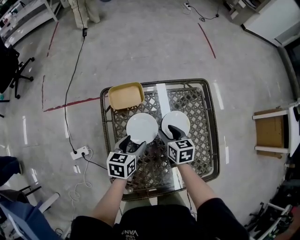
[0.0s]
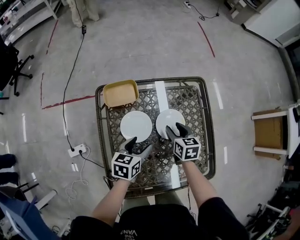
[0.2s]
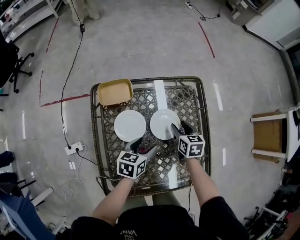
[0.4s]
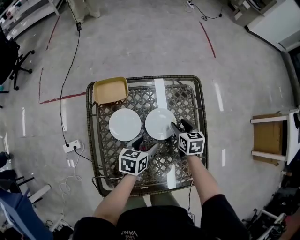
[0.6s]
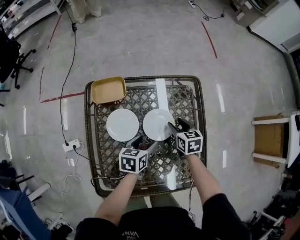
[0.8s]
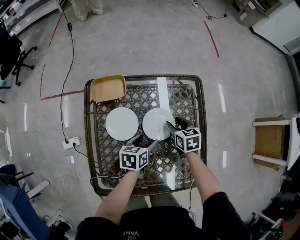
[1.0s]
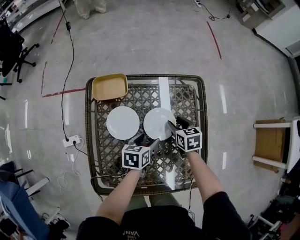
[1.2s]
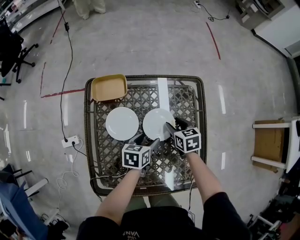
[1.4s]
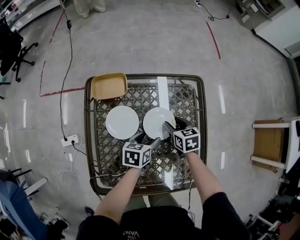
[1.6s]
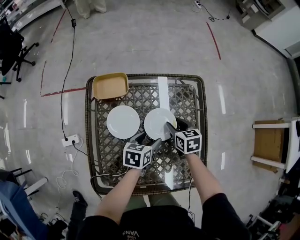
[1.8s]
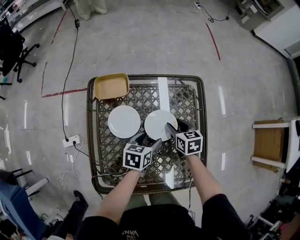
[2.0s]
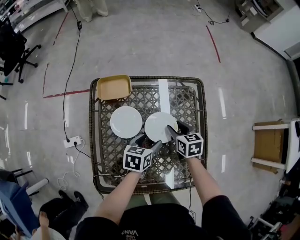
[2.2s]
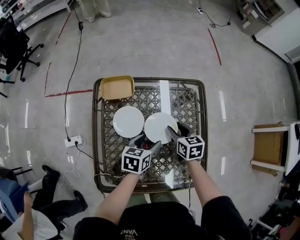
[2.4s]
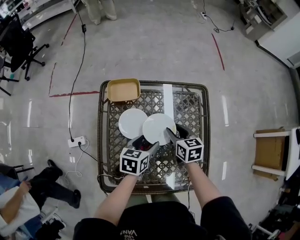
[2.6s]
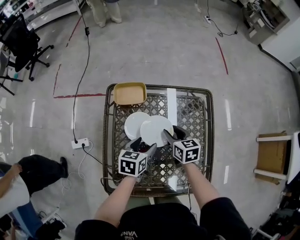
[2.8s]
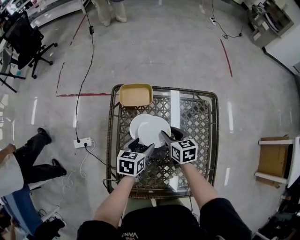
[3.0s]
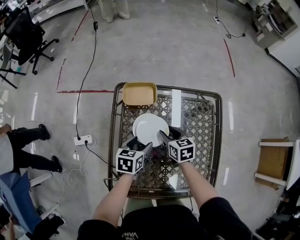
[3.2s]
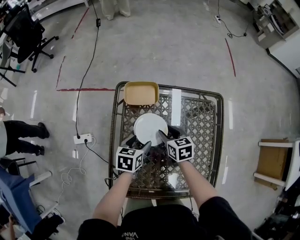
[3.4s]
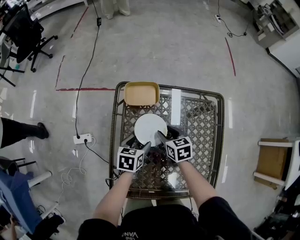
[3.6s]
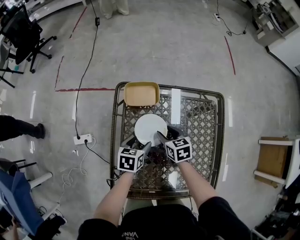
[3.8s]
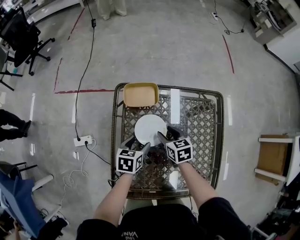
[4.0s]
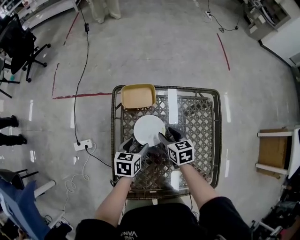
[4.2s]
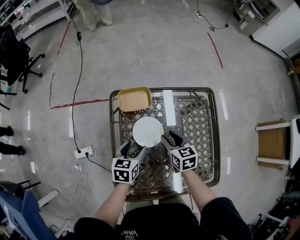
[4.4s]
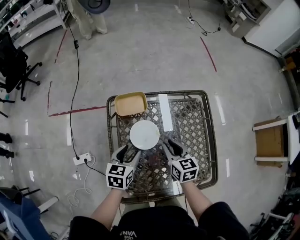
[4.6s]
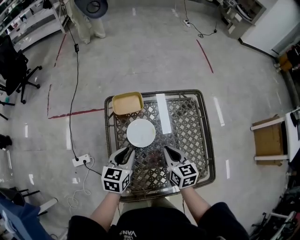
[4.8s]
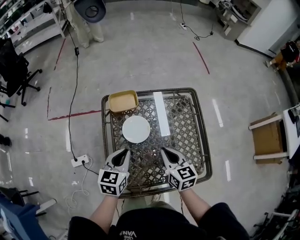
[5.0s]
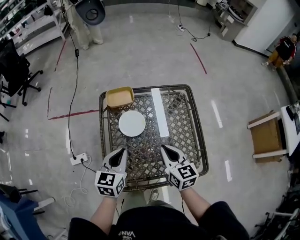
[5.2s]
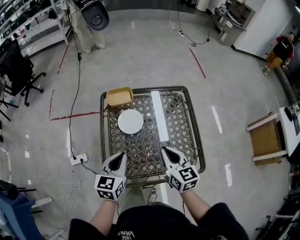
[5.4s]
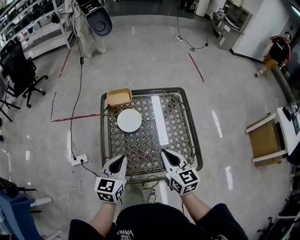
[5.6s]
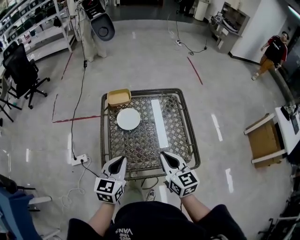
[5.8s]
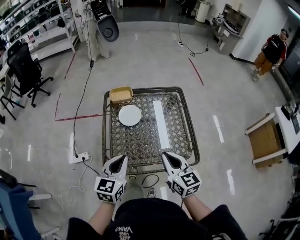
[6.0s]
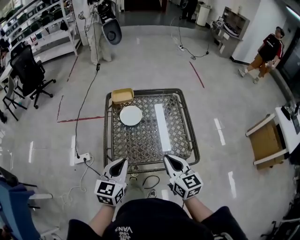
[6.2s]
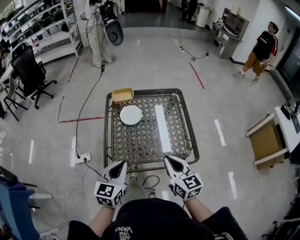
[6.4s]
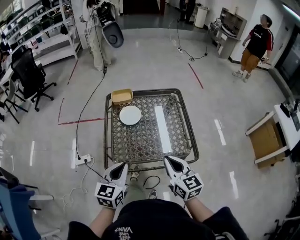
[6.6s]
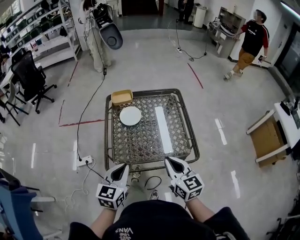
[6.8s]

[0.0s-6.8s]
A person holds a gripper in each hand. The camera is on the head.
0.0s to 1.4s: Both grippers travel together to the right, roughly 15 cm.
1.4s to 2.8s: Both grippers move to the left and upward, about 10 cm.
2.8s to 4.0s: Both grippers travel together to the left and downward, roughly 10 cm.
4.0s to 5.4s: The right gripper is displaced upward, backward and to the right by roughly 30 cm, rotates about 30 degrees, and closes its fingers, while the left gripper heads upward and backward, covering some 25 cm, turns by roughly 30 degrees, and closes its fingers.
5.4s to 6.8s: The grippers both shift backward by roughly 20 cm.

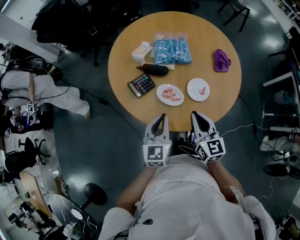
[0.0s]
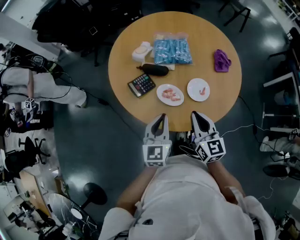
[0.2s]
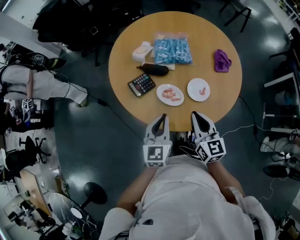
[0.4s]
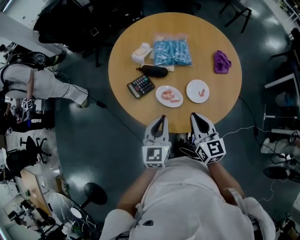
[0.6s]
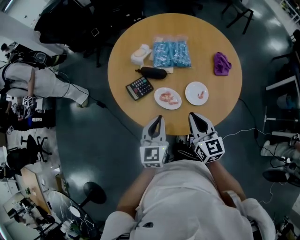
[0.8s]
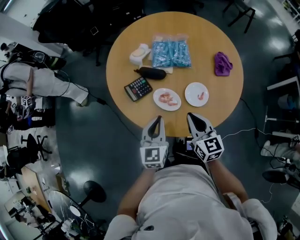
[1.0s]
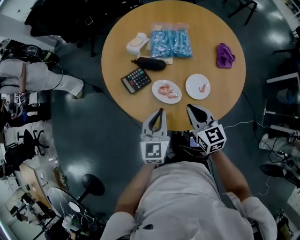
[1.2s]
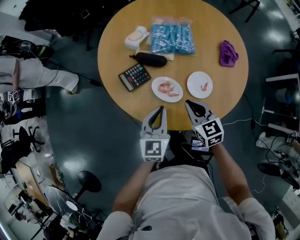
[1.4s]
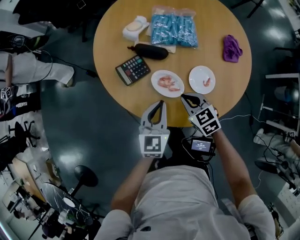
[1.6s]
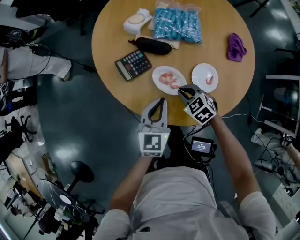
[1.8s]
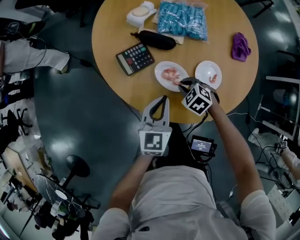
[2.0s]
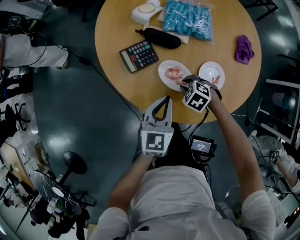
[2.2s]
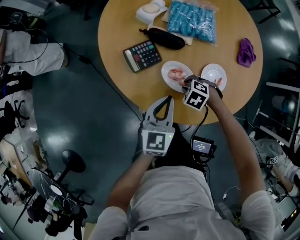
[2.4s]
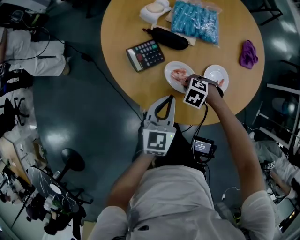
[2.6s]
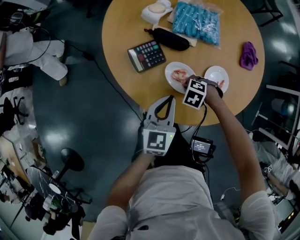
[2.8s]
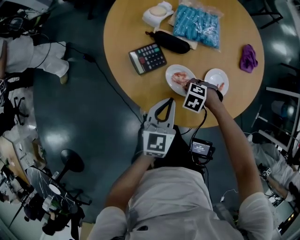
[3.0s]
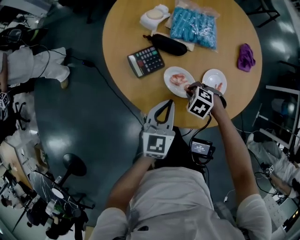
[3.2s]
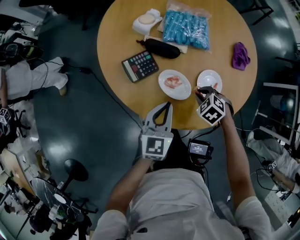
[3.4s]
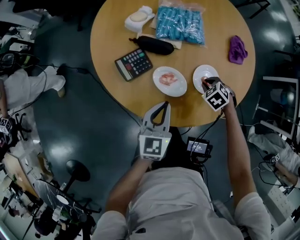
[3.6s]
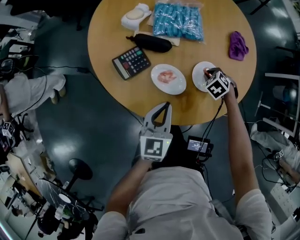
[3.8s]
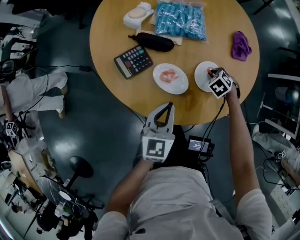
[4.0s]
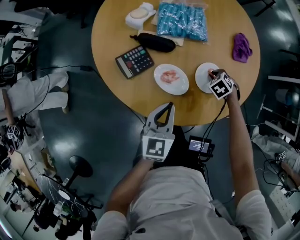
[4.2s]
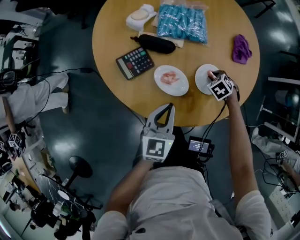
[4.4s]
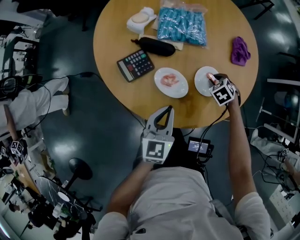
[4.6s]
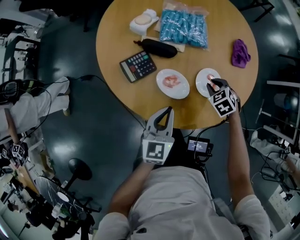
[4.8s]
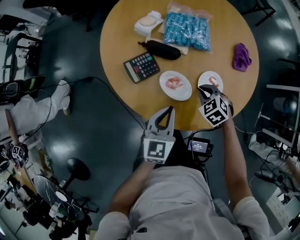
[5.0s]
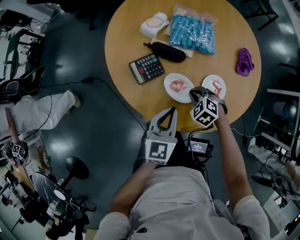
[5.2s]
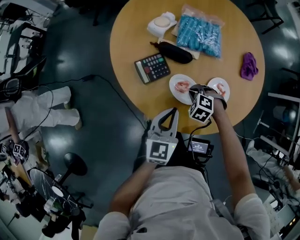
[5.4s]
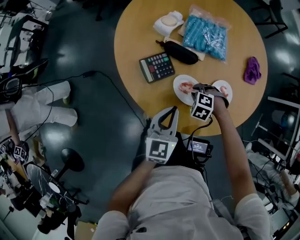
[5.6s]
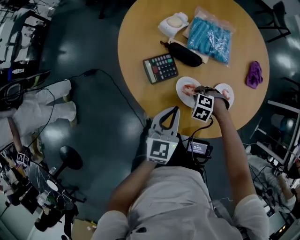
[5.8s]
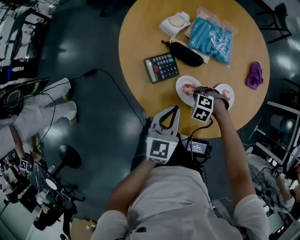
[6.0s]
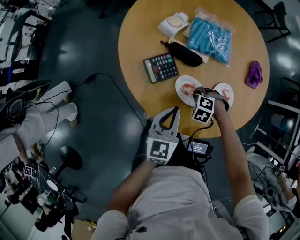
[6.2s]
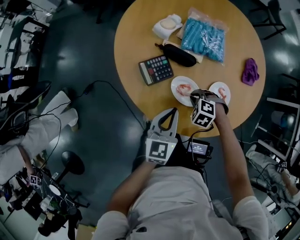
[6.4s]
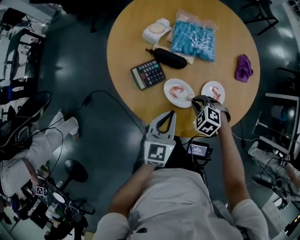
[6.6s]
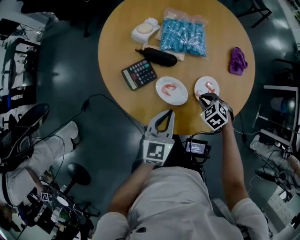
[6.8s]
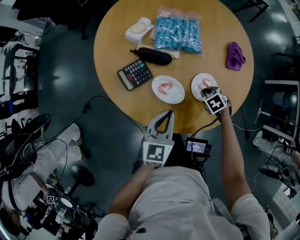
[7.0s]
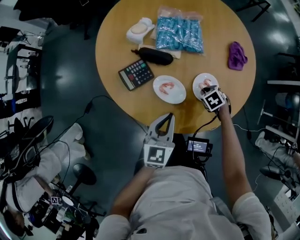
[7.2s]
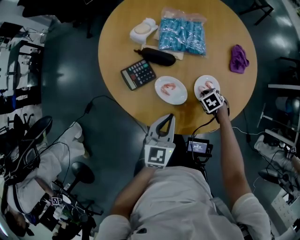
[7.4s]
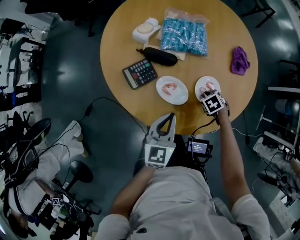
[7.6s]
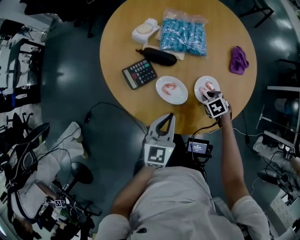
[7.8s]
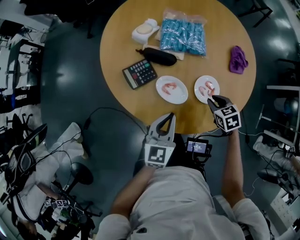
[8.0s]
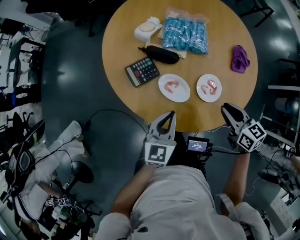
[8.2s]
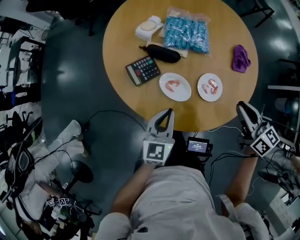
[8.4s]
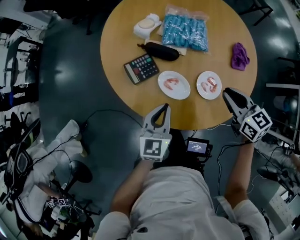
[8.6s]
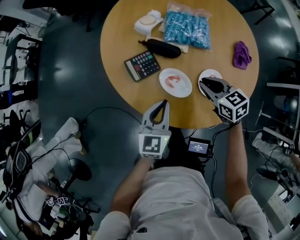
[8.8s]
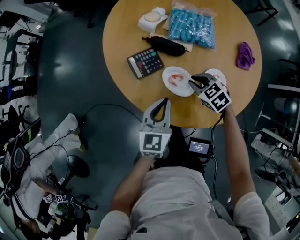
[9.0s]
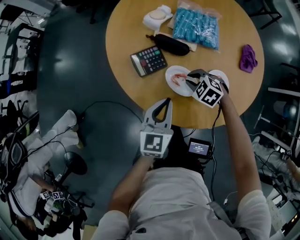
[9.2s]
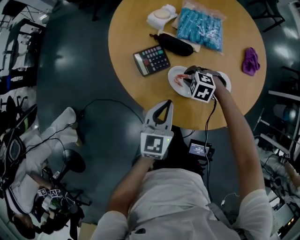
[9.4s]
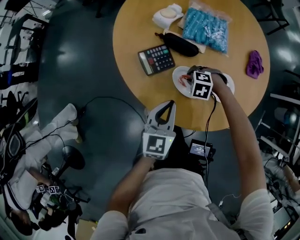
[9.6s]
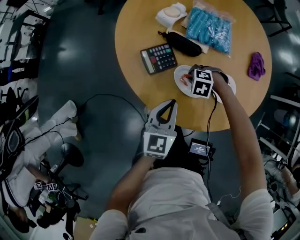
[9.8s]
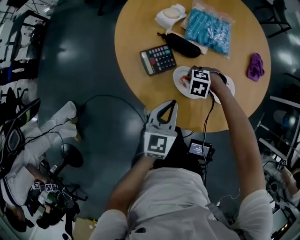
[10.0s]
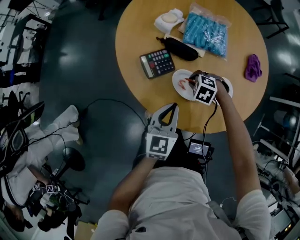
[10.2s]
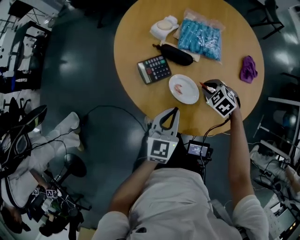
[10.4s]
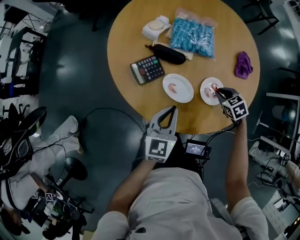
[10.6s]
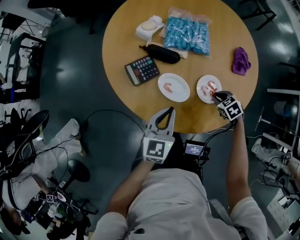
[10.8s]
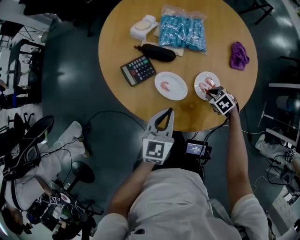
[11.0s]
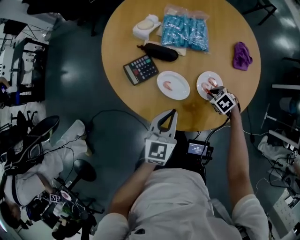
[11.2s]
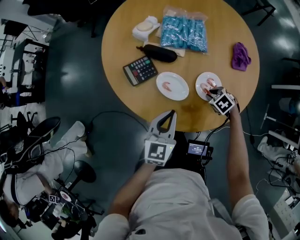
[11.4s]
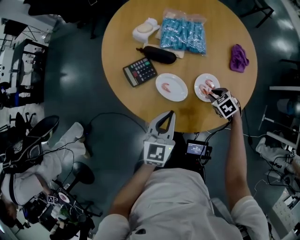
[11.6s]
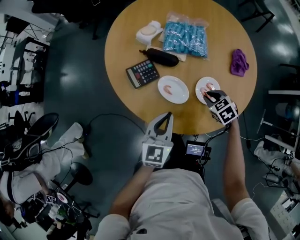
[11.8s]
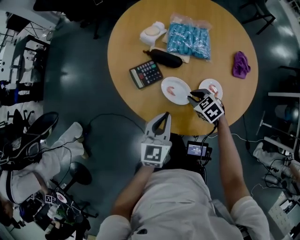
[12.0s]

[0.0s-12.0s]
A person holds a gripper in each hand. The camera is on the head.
0.0s to 1.6s: The left gripper is displaced downward and forward by roughly 10 cm; the right gripper moves downward and forward, approximately 20 cm, and swivels some 40 degrees.
1.6s to 3.0s: The right gripper is displaced downward by some 15 cm, and points its fingers roughly 40 degrees further downward.
3.0s to 4.4s: The right gripper ends up about 20 cm from where it was, and swivels some 40 degrees.
4.4s to 6.0s: The right gripper travels upward and back again, about 10 cm each way, and rotates around the line of its fingers by about 40 degrees, counterclockwise from behind. Meanwhile the left gripper ends up some 10 cm from where it was.
6.0s to 7.6s: The right gripper moves some 10 cm upward and comes back, and twists roughly 60 degrees clockwise, seen from behind; the left gripper ends up approximately 10 cm from where it was.
7.6s to 9.0s: The left gripper shifts by about 5 cm, while the right gripper moves some 30 cm upward and comes back, and rotates some 30 degrees.
9.0s to 10.4s: The right gripper travels downward and back again, some 10 cm each way.
10.4s to 12.0s: The right gripper travels downward and back again, approximately 10 cm each way.

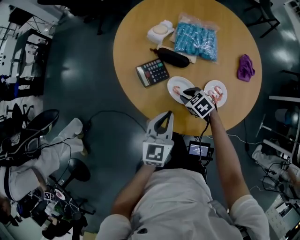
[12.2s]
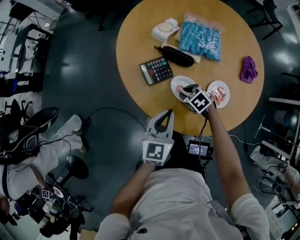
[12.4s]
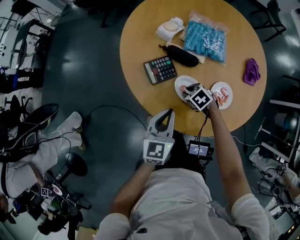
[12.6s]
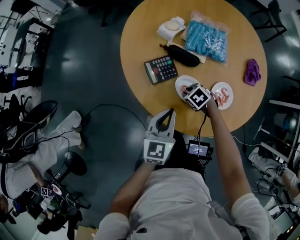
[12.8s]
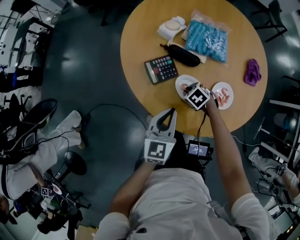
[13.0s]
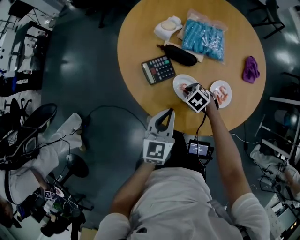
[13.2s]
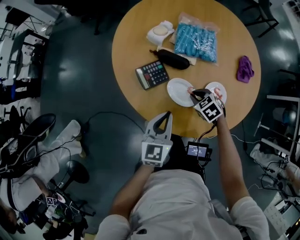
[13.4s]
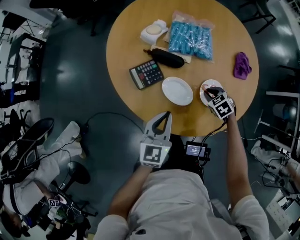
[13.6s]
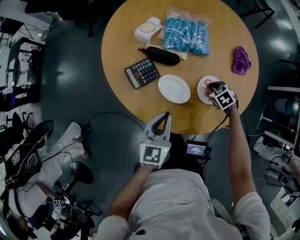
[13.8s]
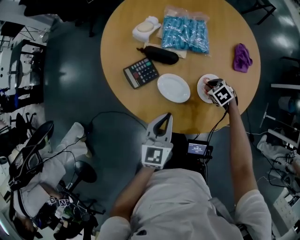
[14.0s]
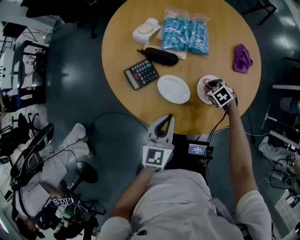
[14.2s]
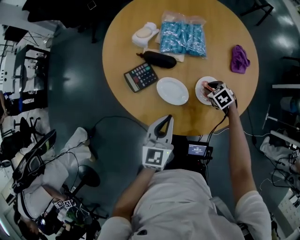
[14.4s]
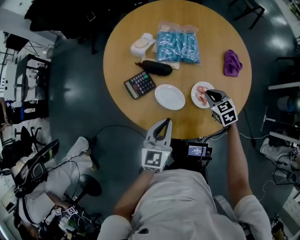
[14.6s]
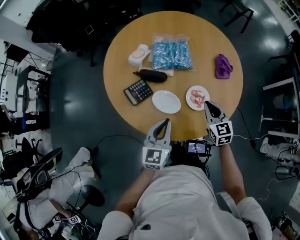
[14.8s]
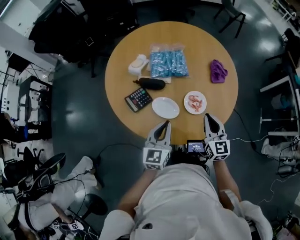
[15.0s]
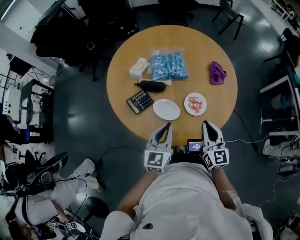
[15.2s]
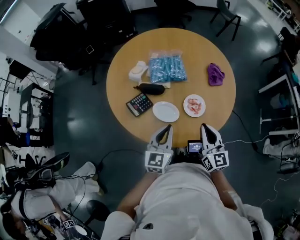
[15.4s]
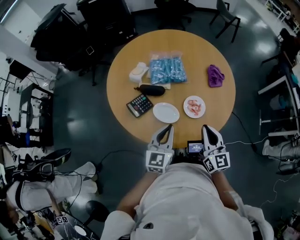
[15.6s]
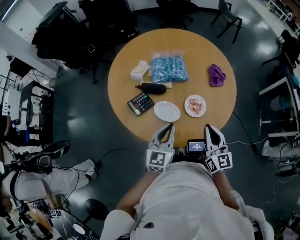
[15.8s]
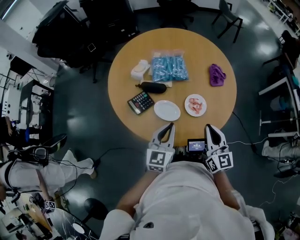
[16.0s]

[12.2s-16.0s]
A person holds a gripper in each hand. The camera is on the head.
12.2s to 13.4s: The grippers move only a little.
13.4s to 14.8s: The right gripper heads to the right and upward, covering approximately 20 cm, and tips its fingers upward by approximately 40 degrees, while the left gripper is displaced to the right by roughly 5 cm.
14.8s to 16.0s: The right gripper moves upward and backward, roughly 15 cm, and rotates about 30 degrees.

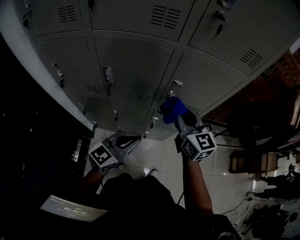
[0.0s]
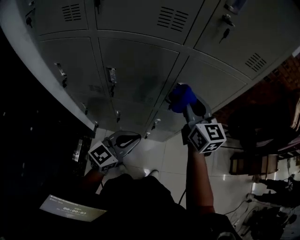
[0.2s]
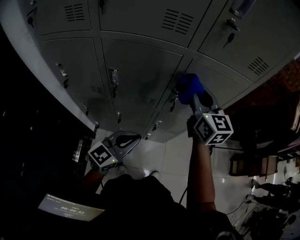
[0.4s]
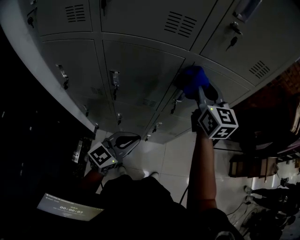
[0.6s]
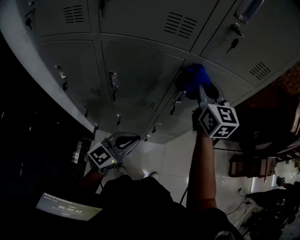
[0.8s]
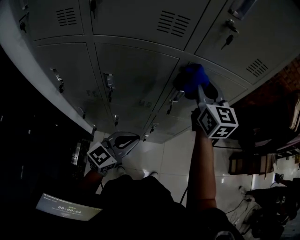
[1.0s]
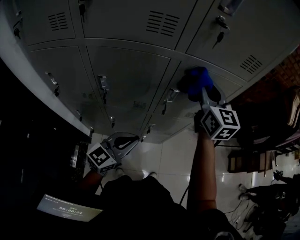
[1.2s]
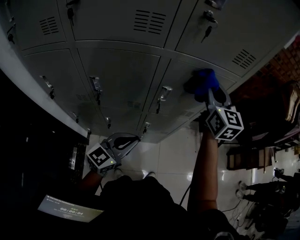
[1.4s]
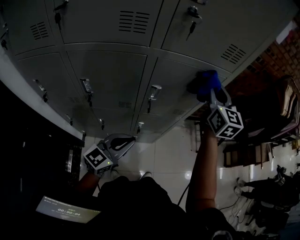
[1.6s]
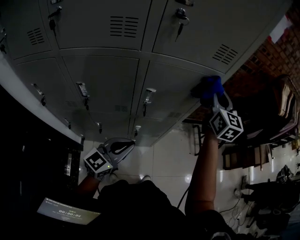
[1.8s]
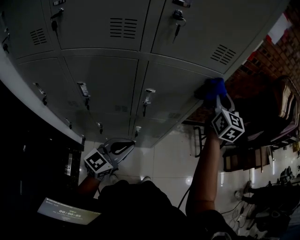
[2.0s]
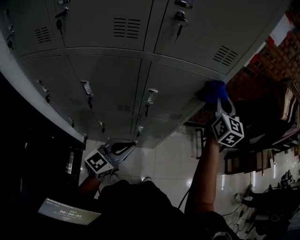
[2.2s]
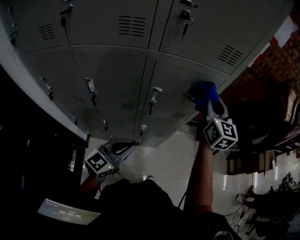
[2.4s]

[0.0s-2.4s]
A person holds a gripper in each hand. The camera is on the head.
0.0s to 1.2s: The right gripper shifts about 15 cm forward and upward.
1.2s to 2.4s: The left gripper travels to the right by some 5 cm. The right gripper goes some 10 cm to the right.
